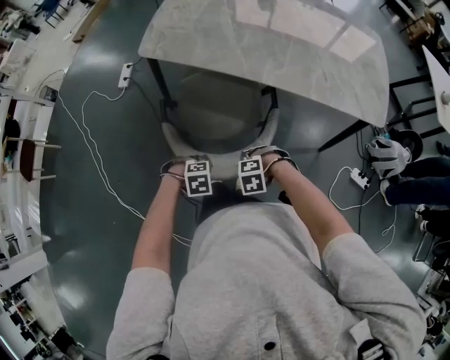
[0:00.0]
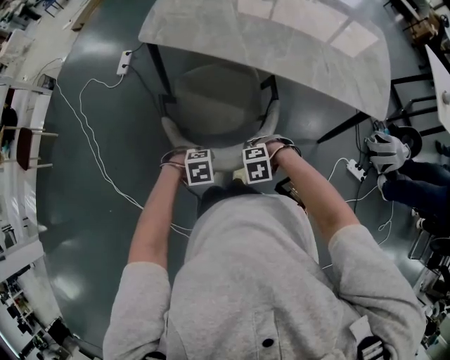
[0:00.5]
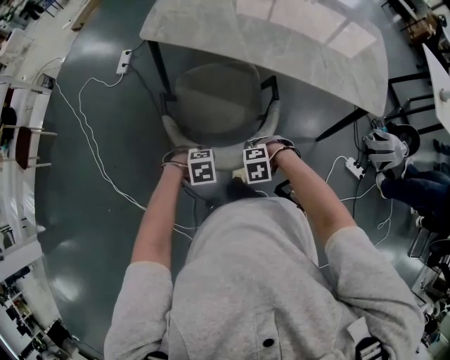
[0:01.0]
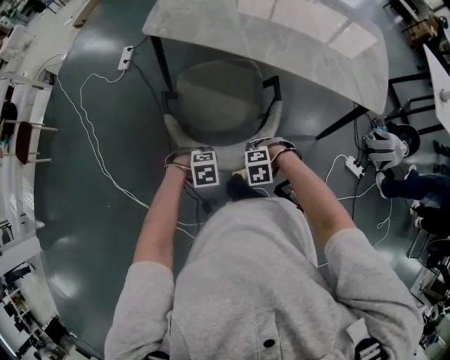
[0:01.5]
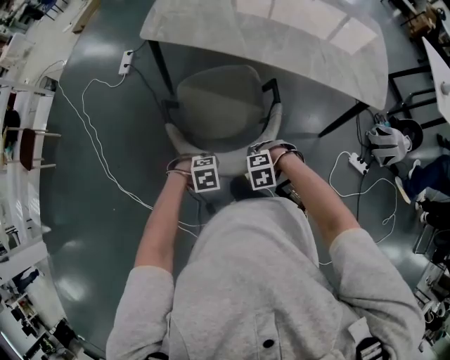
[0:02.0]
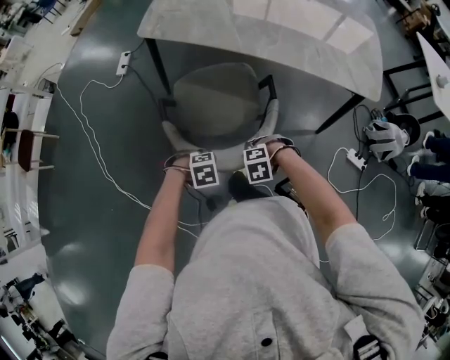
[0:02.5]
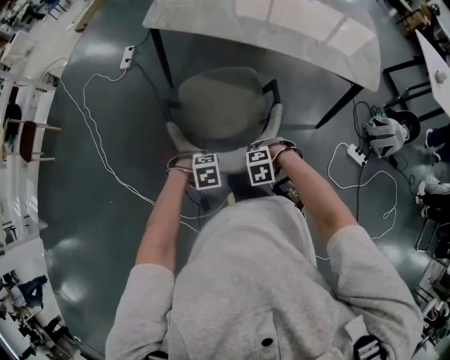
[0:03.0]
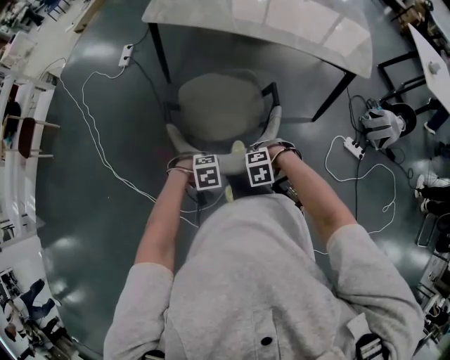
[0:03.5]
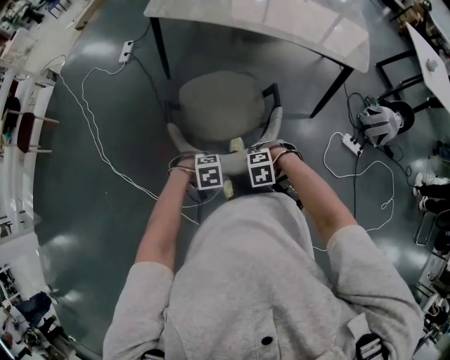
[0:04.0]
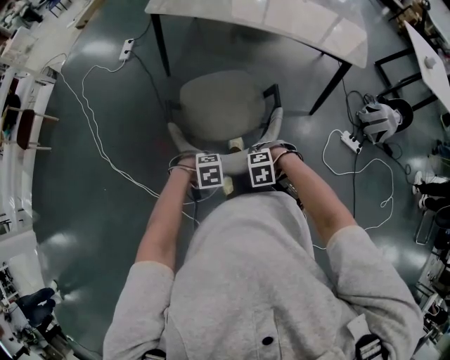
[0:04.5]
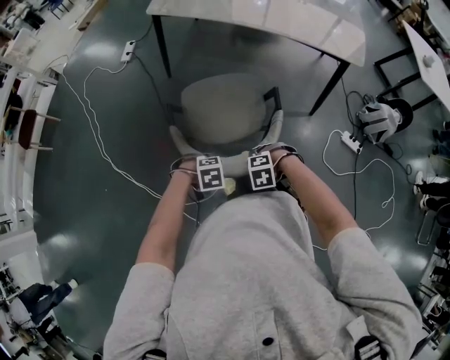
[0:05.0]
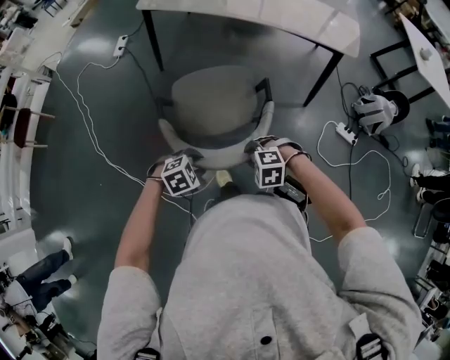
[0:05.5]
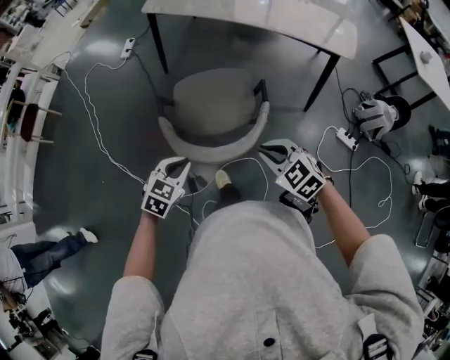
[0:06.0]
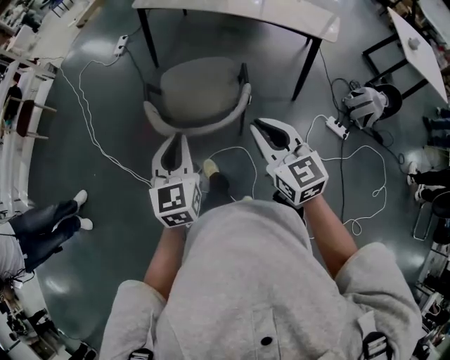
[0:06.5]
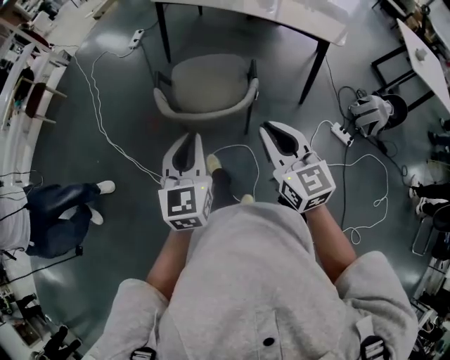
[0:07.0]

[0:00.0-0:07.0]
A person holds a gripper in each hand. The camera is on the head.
0:00.0 to 0:02.0: The left gripper moves about 10 cm; the right gripper shifts by approximately 10 cm.
0:02.0 to 0:03.5: The left gripper ends up some 15 cm from where it was. The right gripper ends up about 15 cm from where it was.
0:03.5 to 0:05.0: The right gripper shifts by about 10 cm, while the left gripper shifts by approximately 10 cm.
0:05.0 to 0:07.0: The grippers both shift upward by roughly 30 cm. The right gripper tips its fingers upward by some 70 degrees. The left gripper tilts its fingers roughly 60 degrees upward.

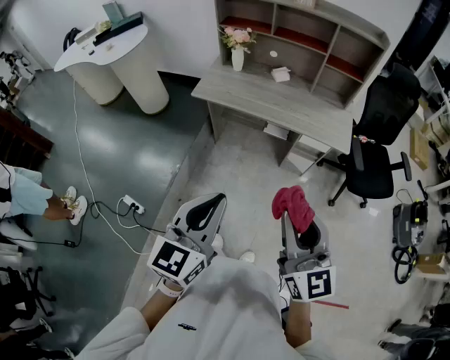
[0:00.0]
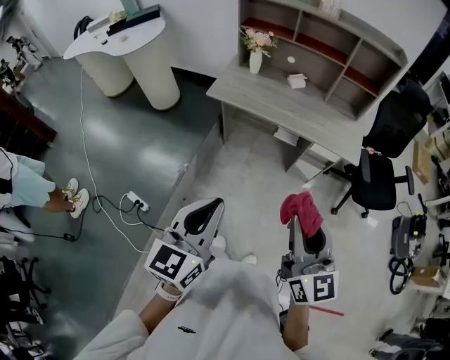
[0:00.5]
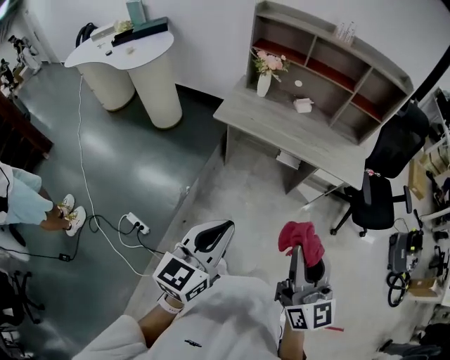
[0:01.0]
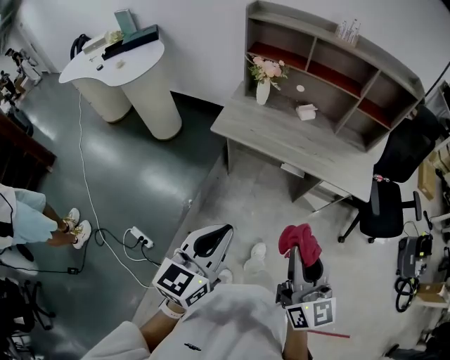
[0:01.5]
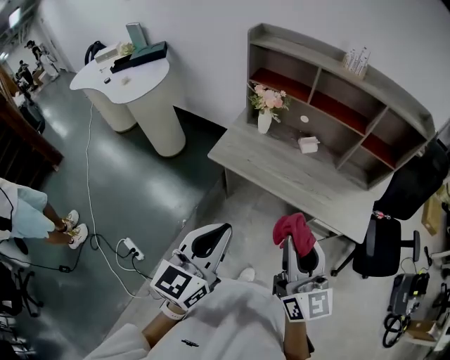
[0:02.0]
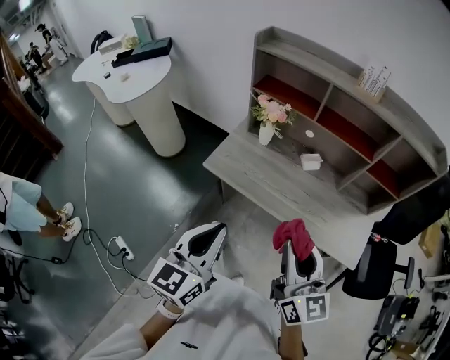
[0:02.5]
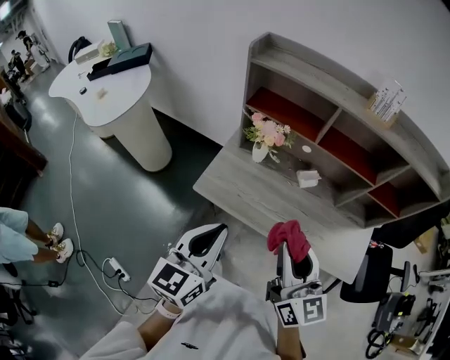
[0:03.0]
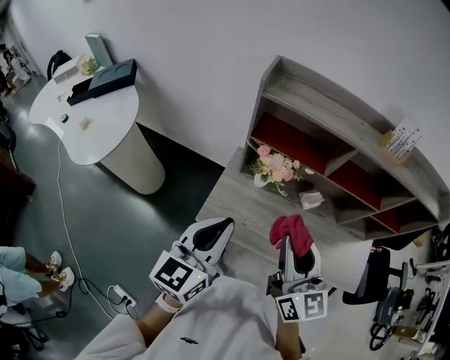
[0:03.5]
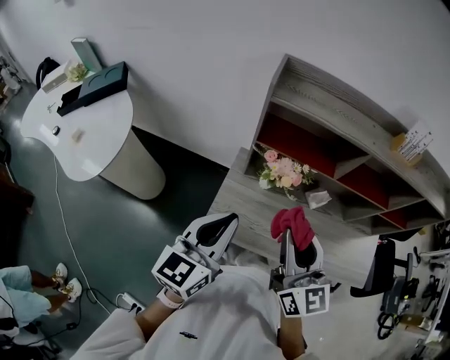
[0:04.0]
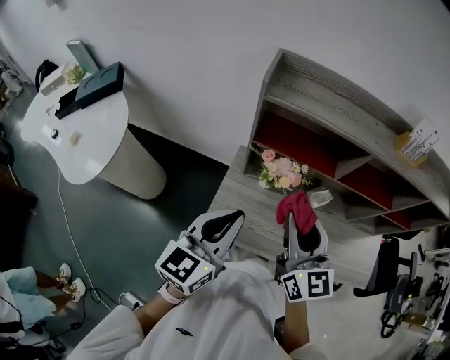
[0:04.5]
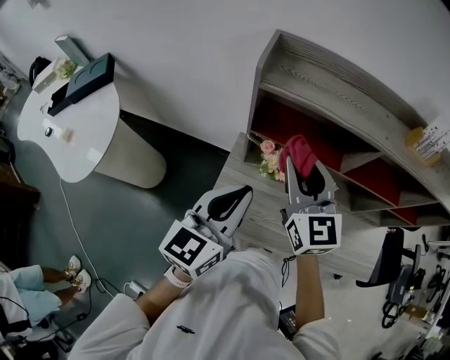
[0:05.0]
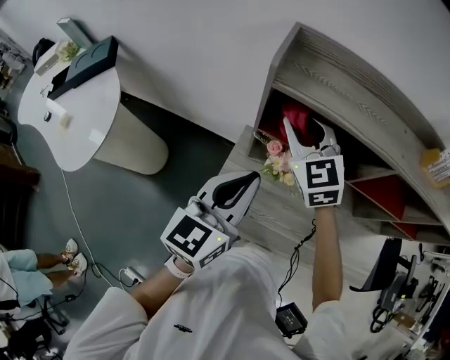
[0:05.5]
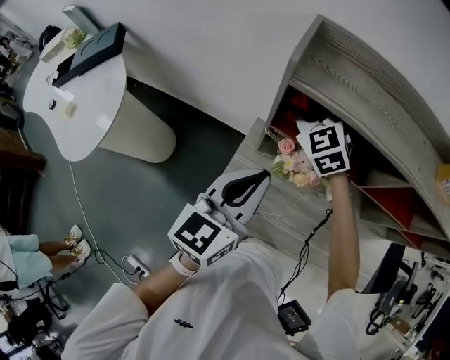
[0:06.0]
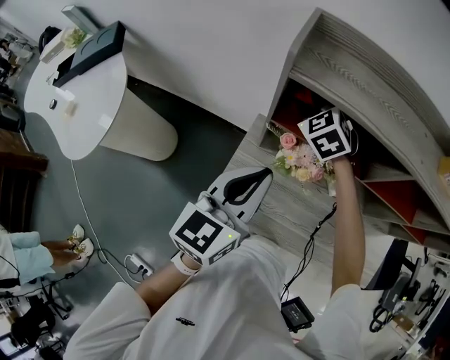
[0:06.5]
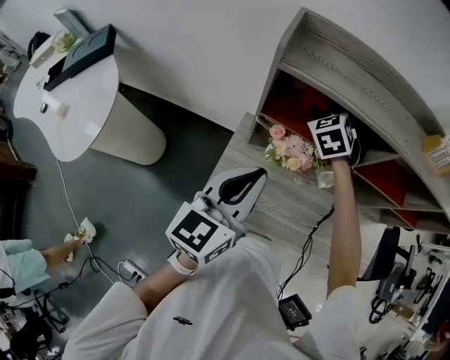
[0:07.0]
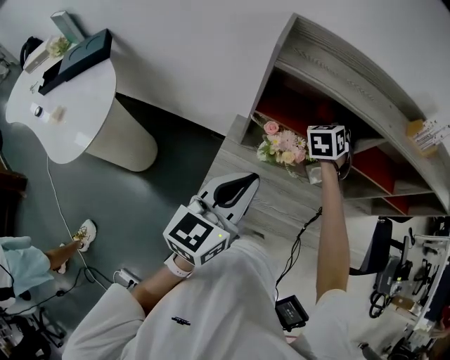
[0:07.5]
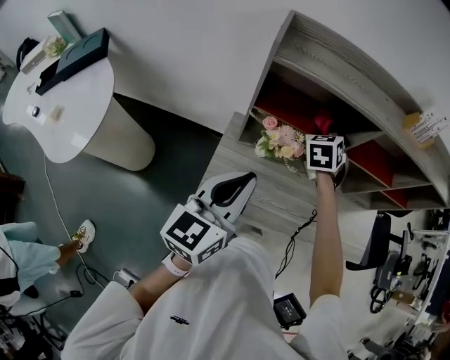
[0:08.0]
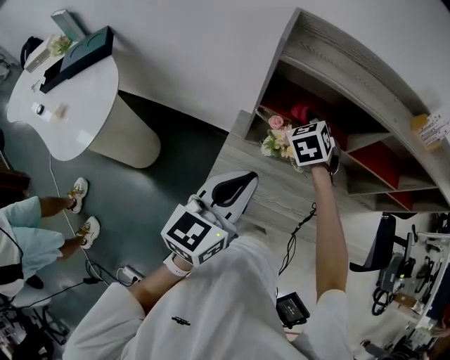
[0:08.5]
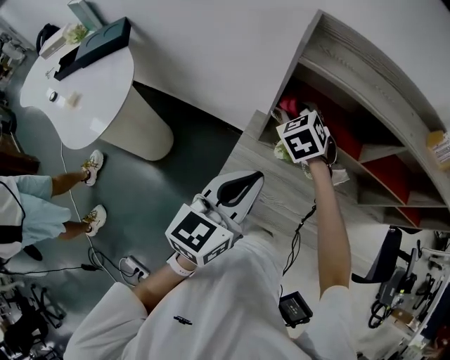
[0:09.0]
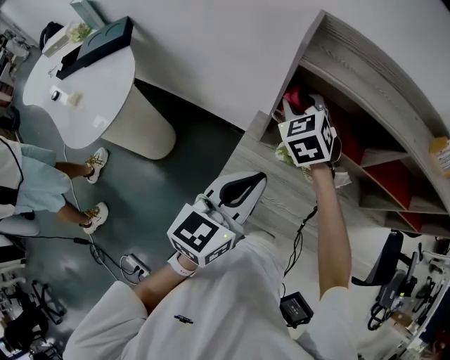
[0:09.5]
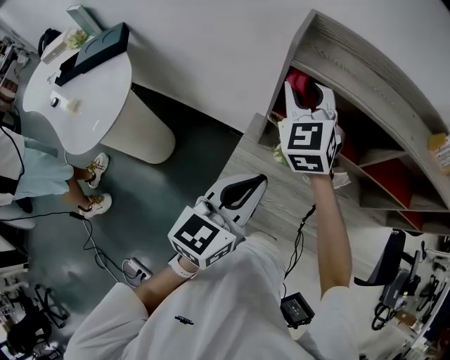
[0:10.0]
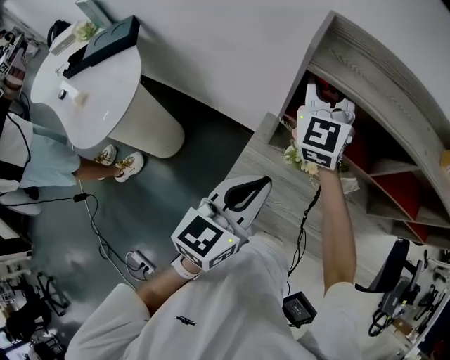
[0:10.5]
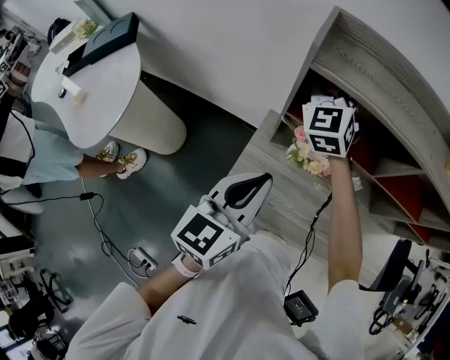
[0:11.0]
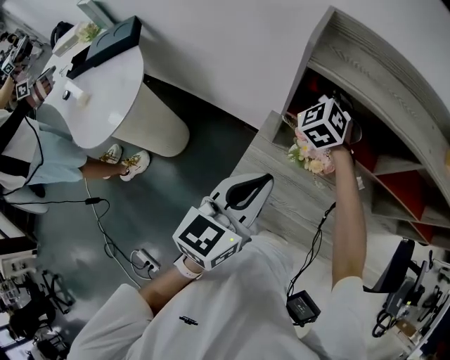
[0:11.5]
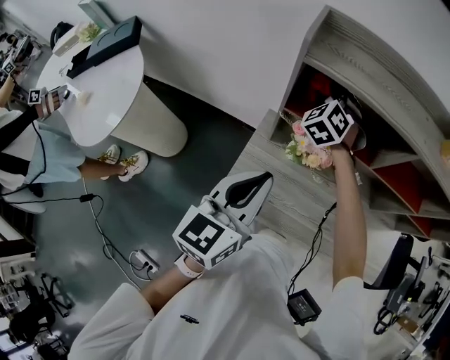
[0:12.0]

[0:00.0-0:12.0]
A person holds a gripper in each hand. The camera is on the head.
0:00.0 to 0:02.0: Both grippers move forward, some 25 cm.
0:02.0 to 0:04.0: The two grippers travel together, forward and to the left, approximately 50 cm.
0:04.0 to 0:06.0: The right gripper goes roughly 35 cm forward, and rotates approximately 50 degrees; the left gripper heads forward, covering roughly 15 cm.
0:06.0 to 0:08.0: The right gripper ends up some 20 cm from where it was, and turns by approximately 50 degrees; the left gripper shifts by roughly 10 cm.
0:08.0 to 0:10.0: The right gripper goes about 25 cm to the left and upward, and rotates about 40 degrees.
0:10.0 to 0:12.0: The right gripper shifts about 15 cm downward, forward and to the right, and changes its angle by about 30 degrees.

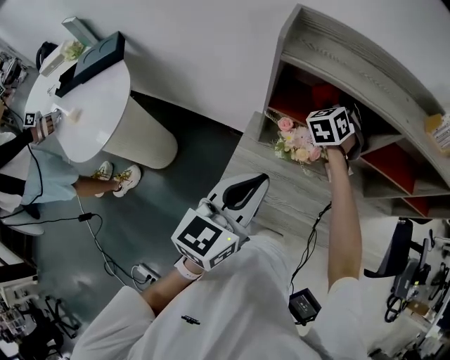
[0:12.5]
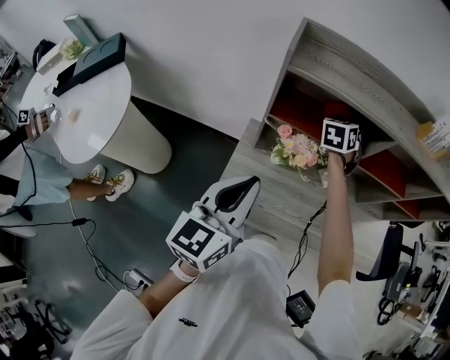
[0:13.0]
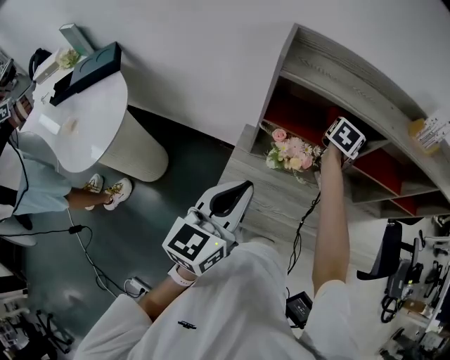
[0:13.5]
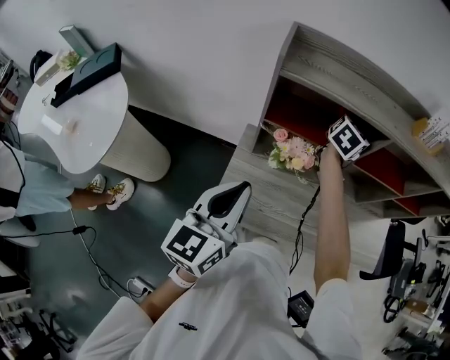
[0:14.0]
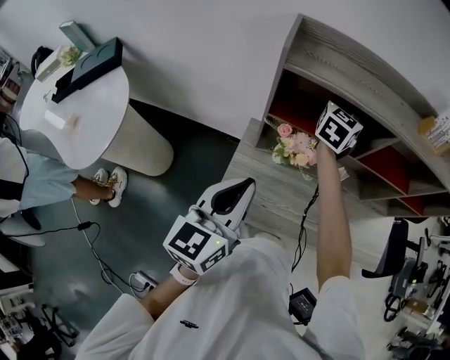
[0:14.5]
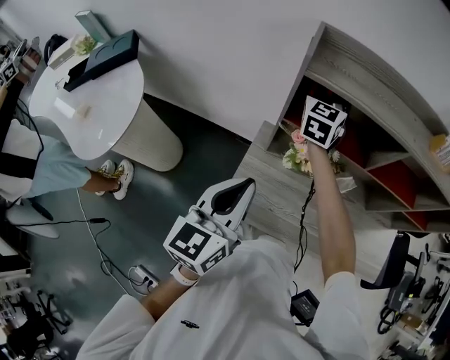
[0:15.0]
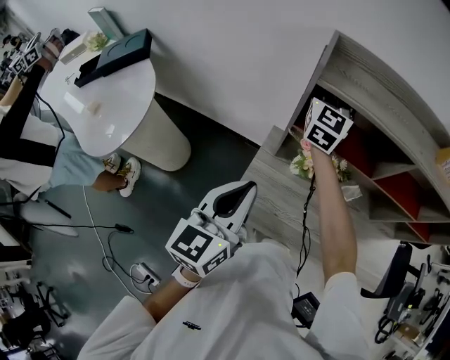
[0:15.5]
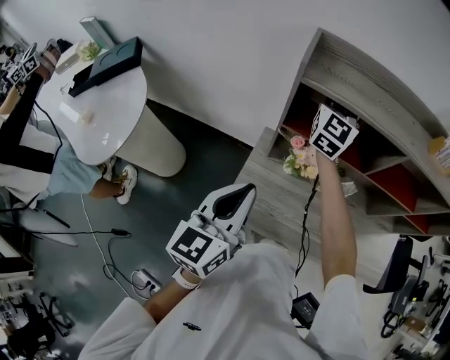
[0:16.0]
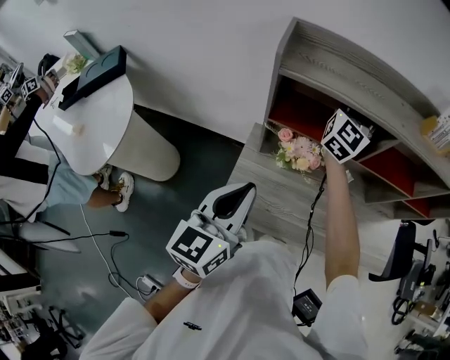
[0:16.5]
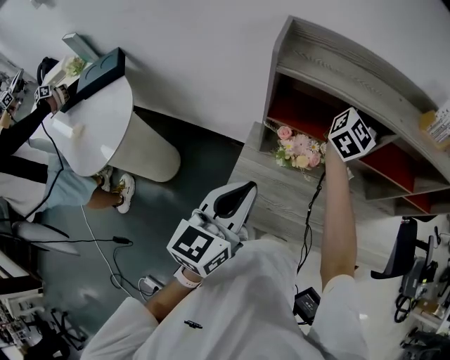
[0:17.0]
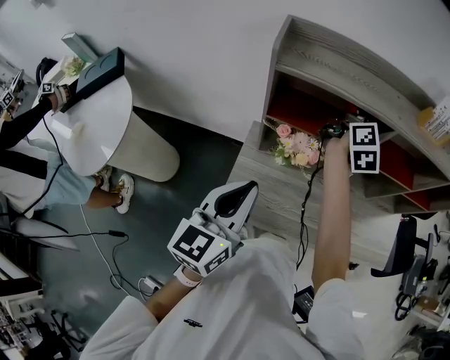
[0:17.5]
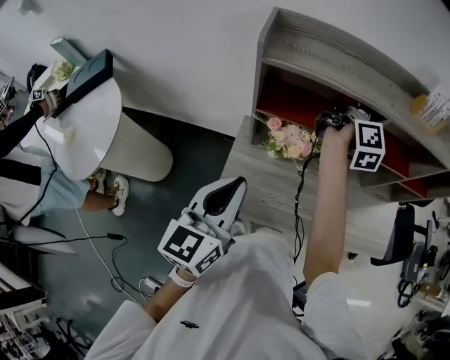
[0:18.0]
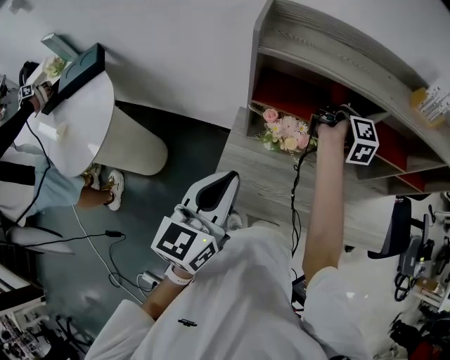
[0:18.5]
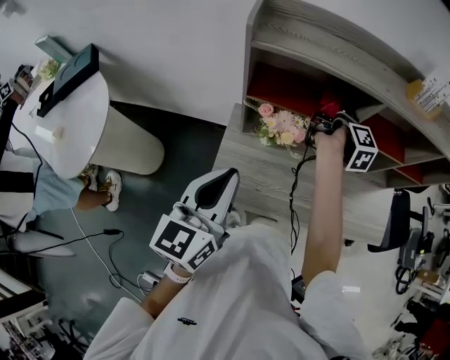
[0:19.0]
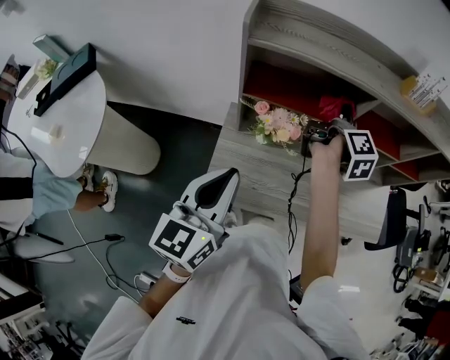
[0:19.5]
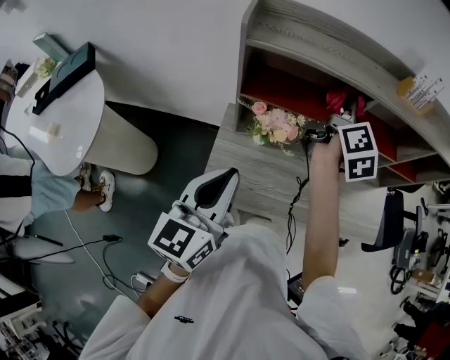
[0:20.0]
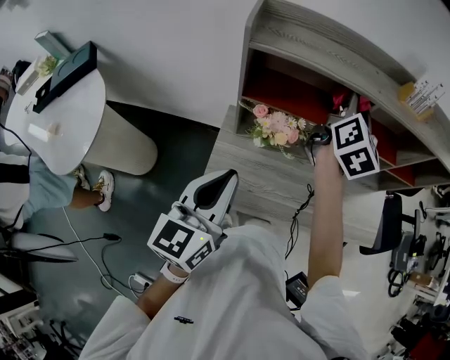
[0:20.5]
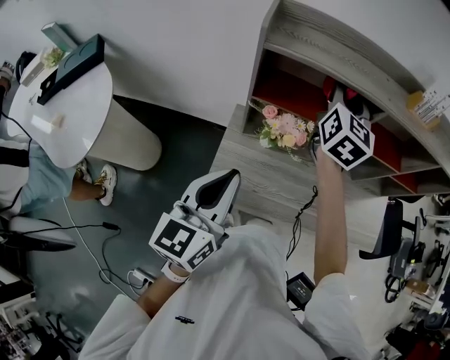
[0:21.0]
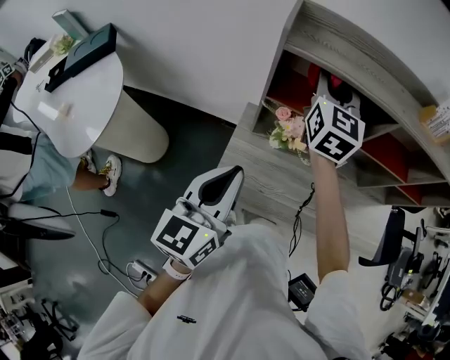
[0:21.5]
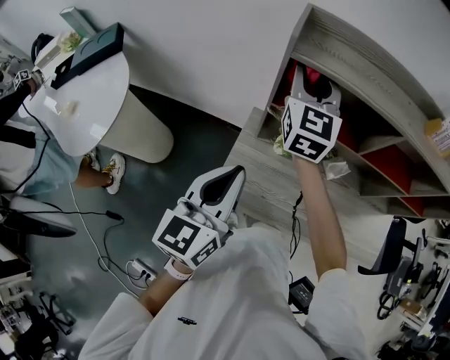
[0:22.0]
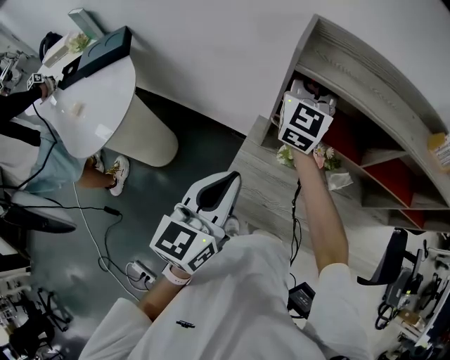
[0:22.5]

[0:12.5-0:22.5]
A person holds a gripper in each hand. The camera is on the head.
0:12.5 to 0:14.5: The right gripper heads upward, covering some 10 cm, goes to the right and returns, roughly 10 cm each way, and twists about 40 degrees clockwise, seen from behind.
0:14.5 to 0:16.5: The right gripper heads upward, covering roughly 10 cm, travels to the left and back again, approximately 15 cm each way, and swivels some 30 degrees.
0:16.5 to 0:18.5: The right gripper is displaced downward and to the right by about 15 cm, and twists approximately 80 degrees clockwise, seen from behind.
0:18.5 to 0:20.5: The right gripper travels upward and backward by approximately 15 cm, and rotates around the line of its fingers by roughly 50 degrees, counterclockwise from behind.
0:20.5 to 0:22.5: The right gripper shifts roughly 25 cm to the left, and rotates about 40 degrees. Meanwhile the left gripper is displaced to the left by approximately 5 cm.
